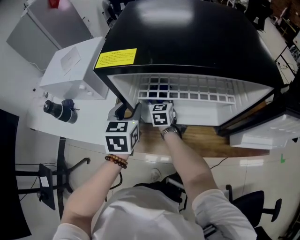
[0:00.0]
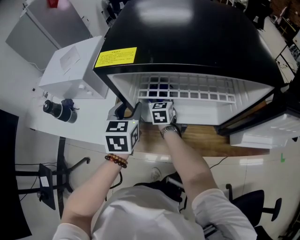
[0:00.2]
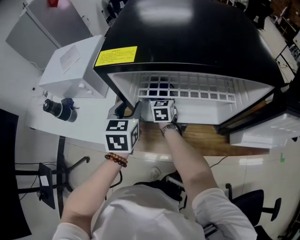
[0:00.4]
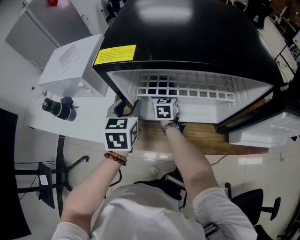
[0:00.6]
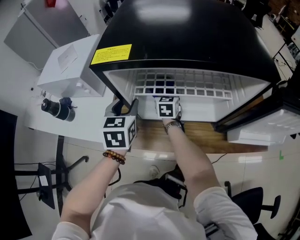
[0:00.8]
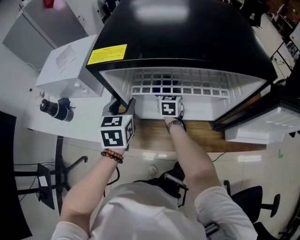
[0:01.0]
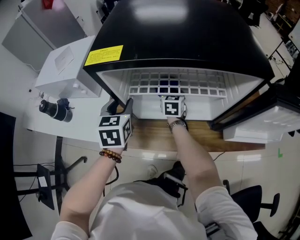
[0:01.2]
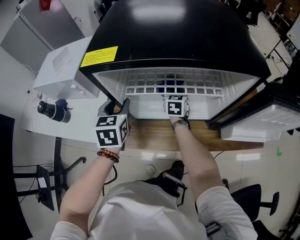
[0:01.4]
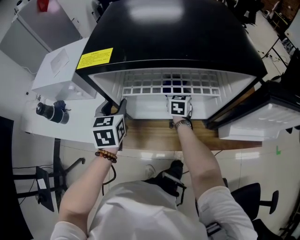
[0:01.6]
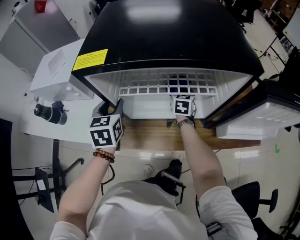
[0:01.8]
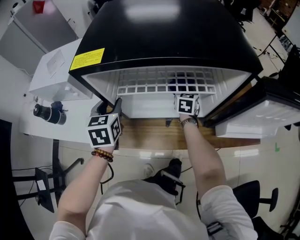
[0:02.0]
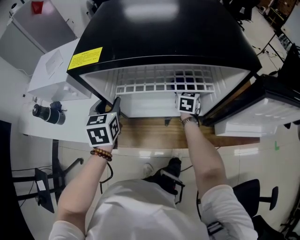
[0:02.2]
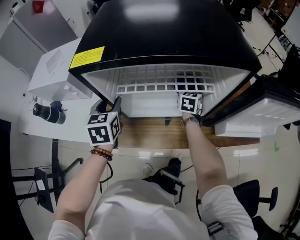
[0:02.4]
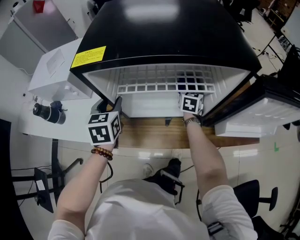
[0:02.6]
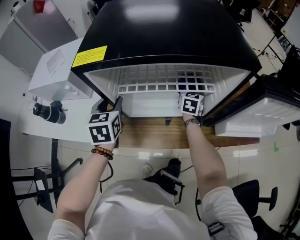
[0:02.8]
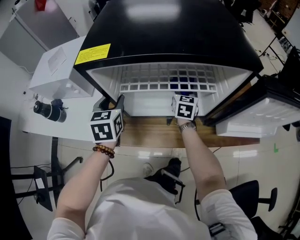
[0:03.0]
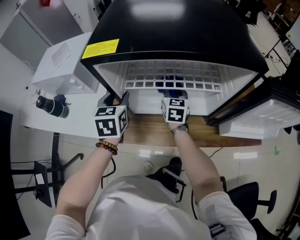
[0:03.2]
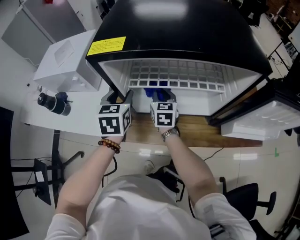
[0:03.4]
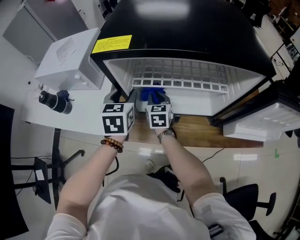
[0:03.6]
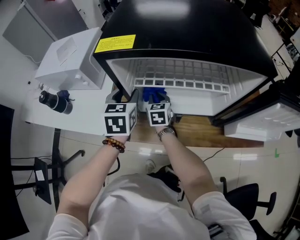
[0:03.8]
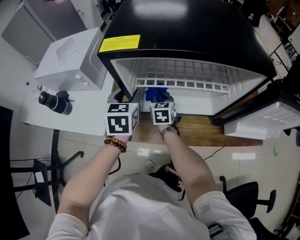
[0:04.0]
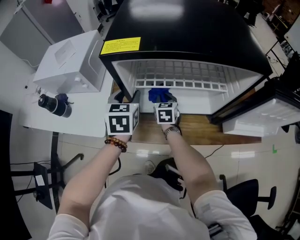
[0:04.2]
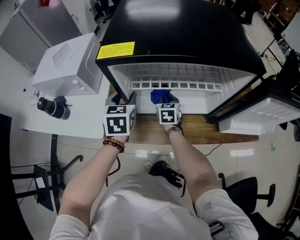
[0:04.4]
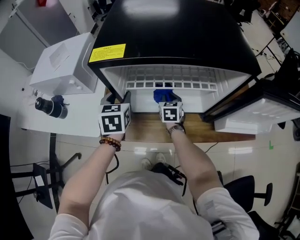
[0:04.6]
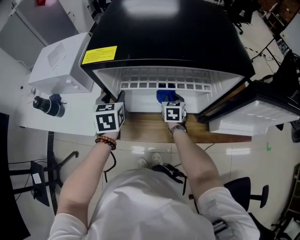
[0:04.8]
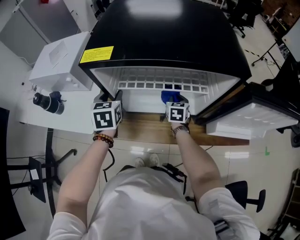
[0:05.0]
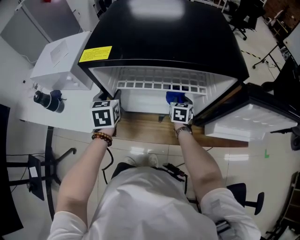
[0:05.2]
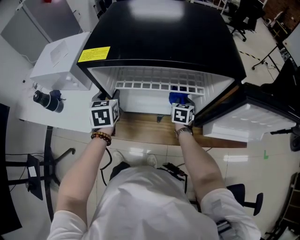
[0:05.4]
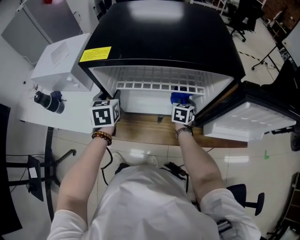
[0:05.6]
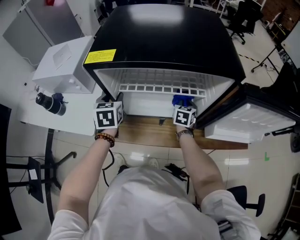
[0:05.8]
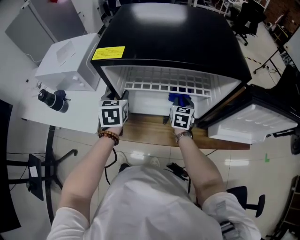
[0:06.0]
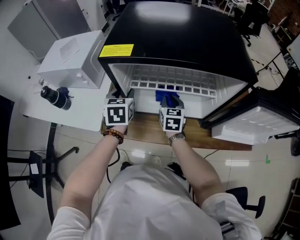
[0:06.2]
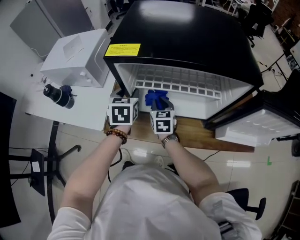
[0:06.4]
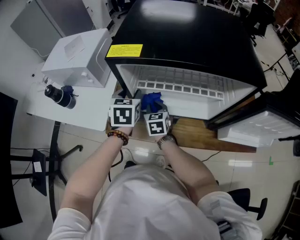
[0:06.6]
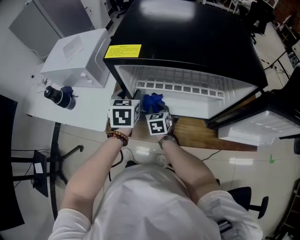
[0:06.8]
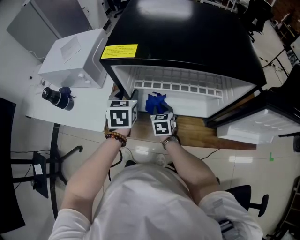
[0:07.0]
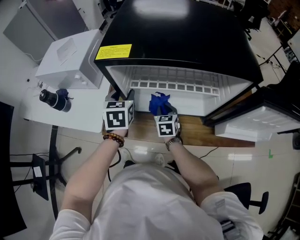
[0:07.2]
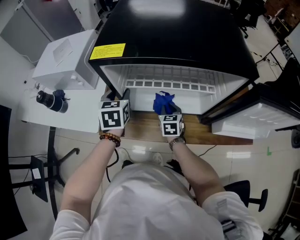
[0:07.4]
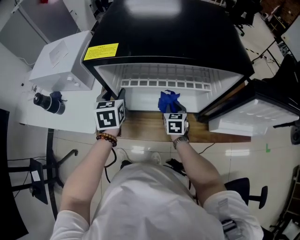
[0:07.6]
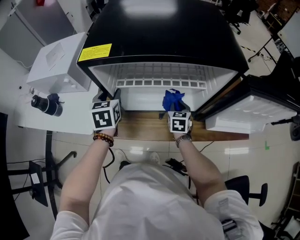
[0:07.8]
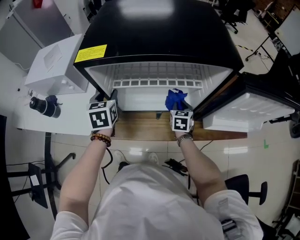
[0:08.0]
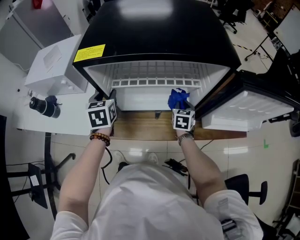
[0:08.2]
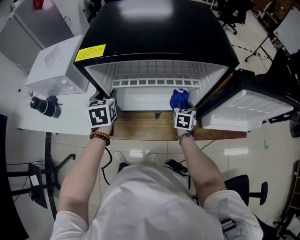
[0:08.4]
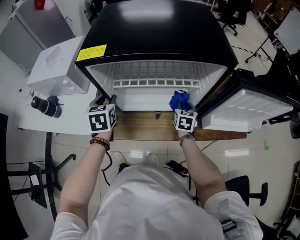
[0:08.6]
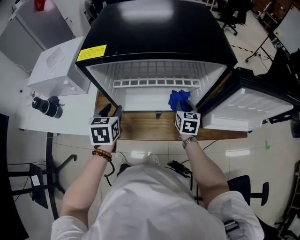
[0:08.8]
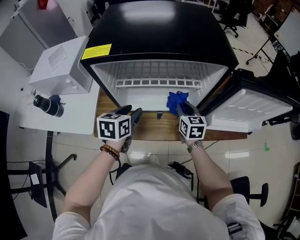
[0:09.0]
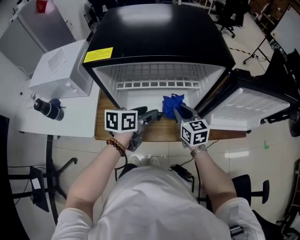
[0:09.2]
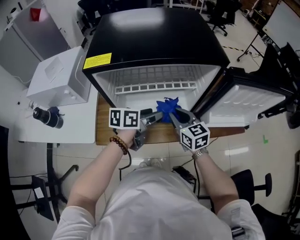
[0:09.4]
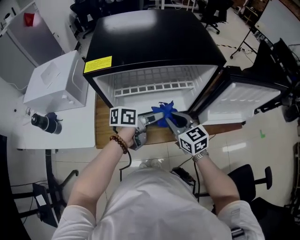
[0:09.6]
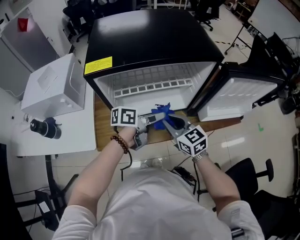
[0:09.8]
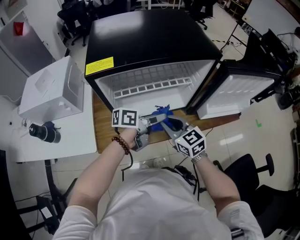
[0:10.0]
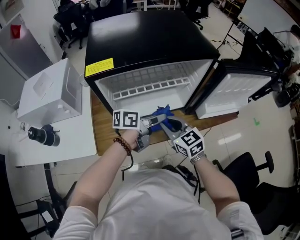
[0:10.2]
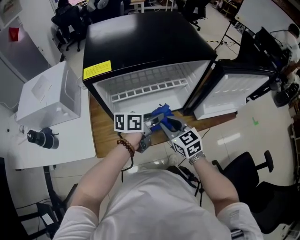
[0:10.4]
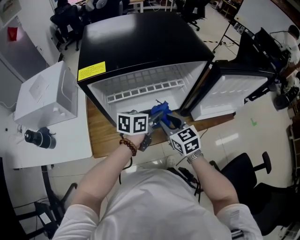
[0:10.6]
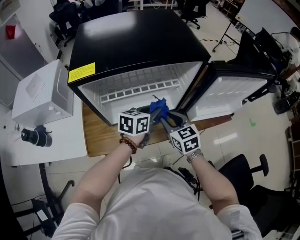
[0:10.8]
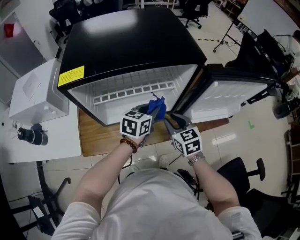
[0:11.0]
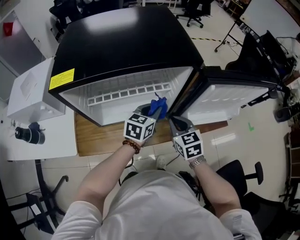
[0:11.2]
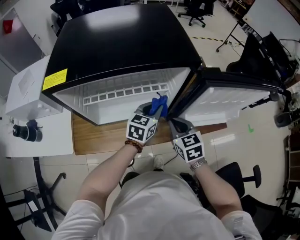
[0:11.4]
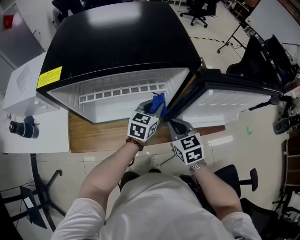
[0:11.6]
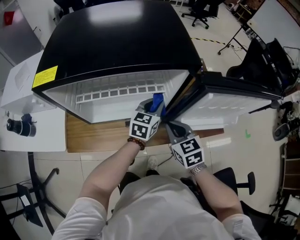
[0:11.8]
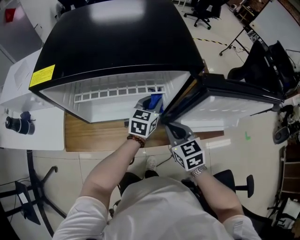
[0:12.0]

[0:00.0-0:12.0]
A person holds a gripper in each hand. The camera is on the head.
0:00.0 to 0:01.6: The right gripper shifts approximately 15 cm to the right.
0:03.0 to 0:04.4: The right gripper shifts some 15 cm to the left and downward.
0:04.4 to 0:06.0: The right gripper heads to the right and upward, covering some 15 cm.
0:06.0 to 0:07.6: The right gripper shifts approximately 5 cm downward, and reaches approximately 20 cm to the left, then returns.
0:07.6 to 0:09.0: The right gripper is displaced upward and to the right by approximately 10 cm. The left gripper travels to the right and backward by approximately 15 cm, and turns by some 20 degrees.
0:09.0 to 0:10.4: The right gripper is displaced backward, upward and to the left by about 15 cm; the left gripper goes approximately 10 cm to the right, changes its angle by approximately 50 degrees, and closes up.
0:10.4 to 0:12.0: The right gripper heads to the right, covering about 15 cm, while the left gripper shifts roughly 20 cm forward and to the right, and swivels about 40 degrees.

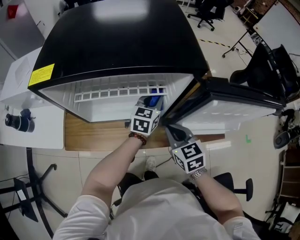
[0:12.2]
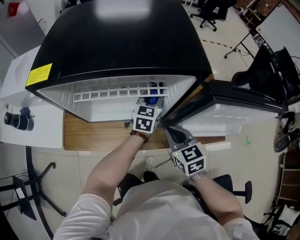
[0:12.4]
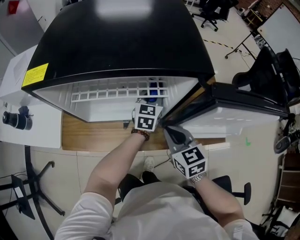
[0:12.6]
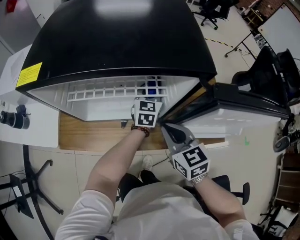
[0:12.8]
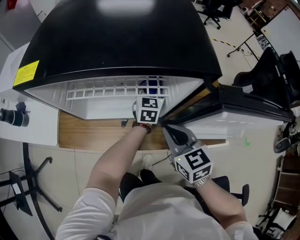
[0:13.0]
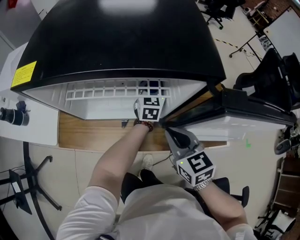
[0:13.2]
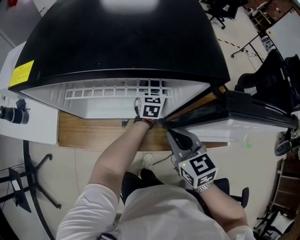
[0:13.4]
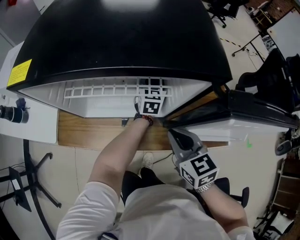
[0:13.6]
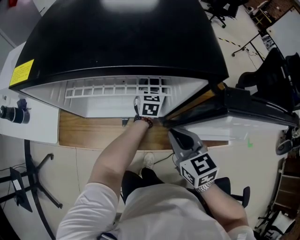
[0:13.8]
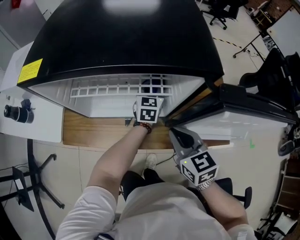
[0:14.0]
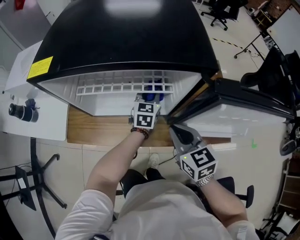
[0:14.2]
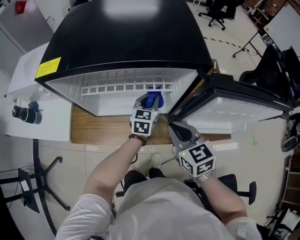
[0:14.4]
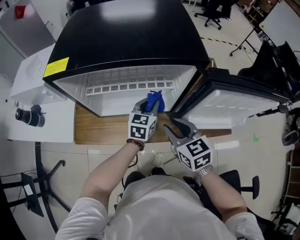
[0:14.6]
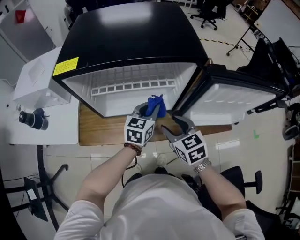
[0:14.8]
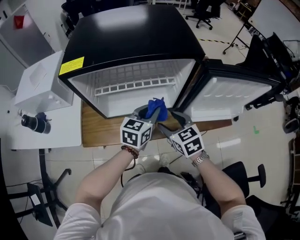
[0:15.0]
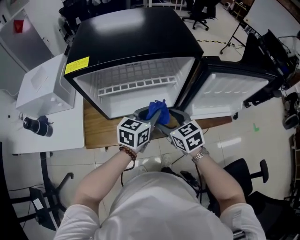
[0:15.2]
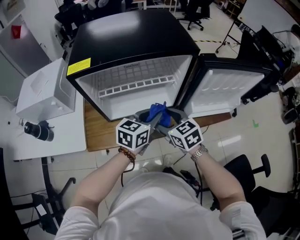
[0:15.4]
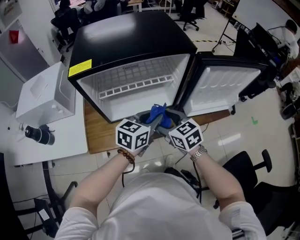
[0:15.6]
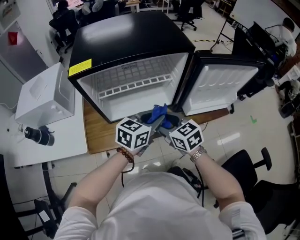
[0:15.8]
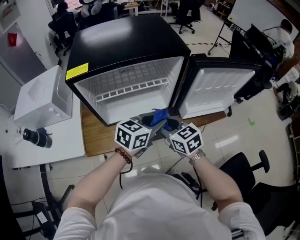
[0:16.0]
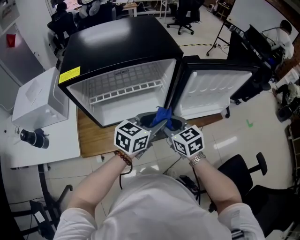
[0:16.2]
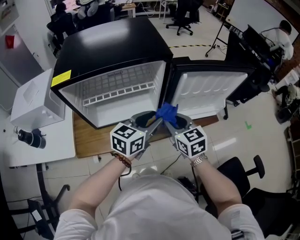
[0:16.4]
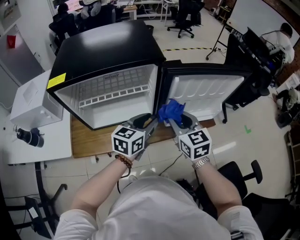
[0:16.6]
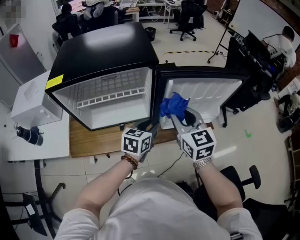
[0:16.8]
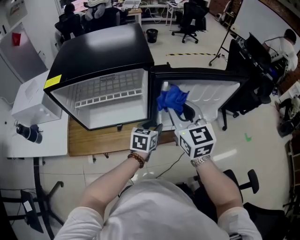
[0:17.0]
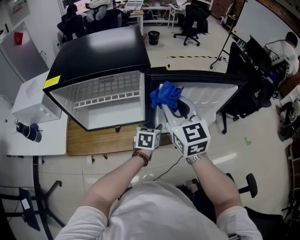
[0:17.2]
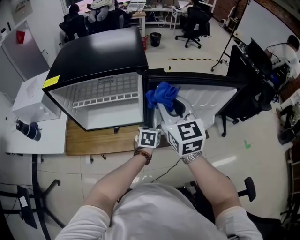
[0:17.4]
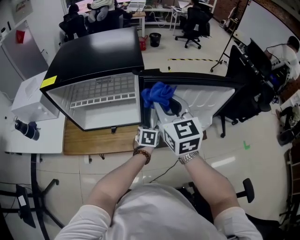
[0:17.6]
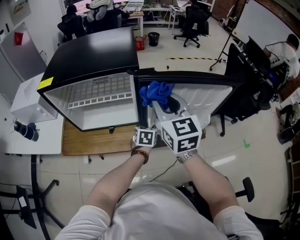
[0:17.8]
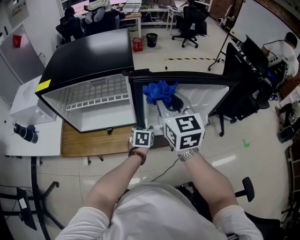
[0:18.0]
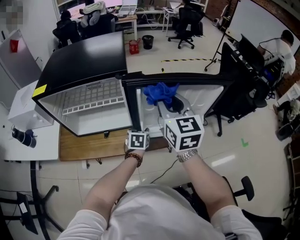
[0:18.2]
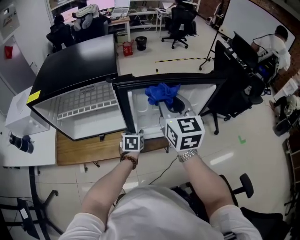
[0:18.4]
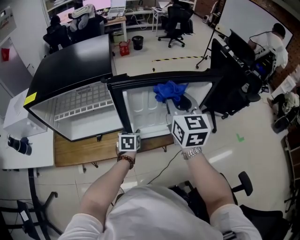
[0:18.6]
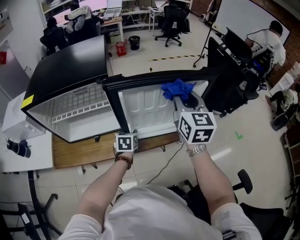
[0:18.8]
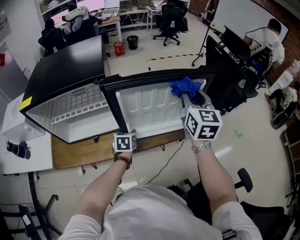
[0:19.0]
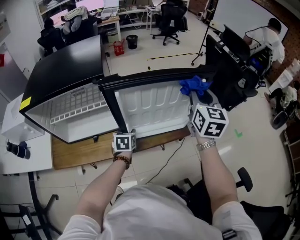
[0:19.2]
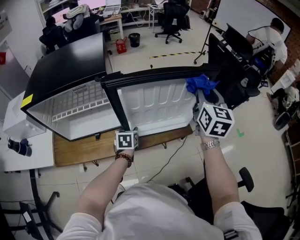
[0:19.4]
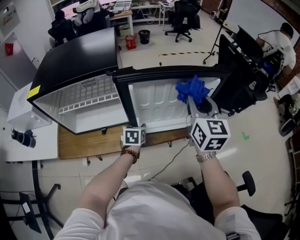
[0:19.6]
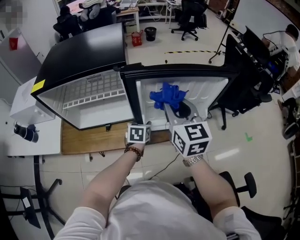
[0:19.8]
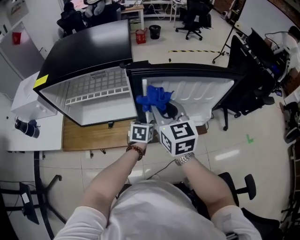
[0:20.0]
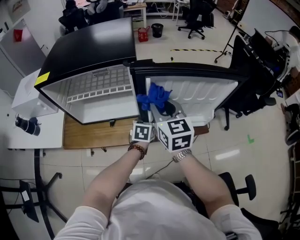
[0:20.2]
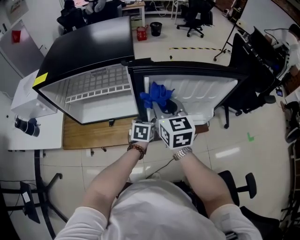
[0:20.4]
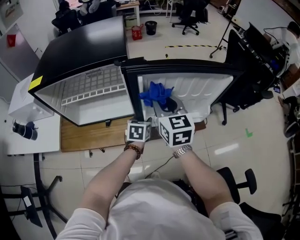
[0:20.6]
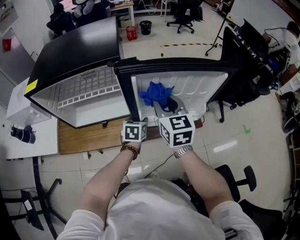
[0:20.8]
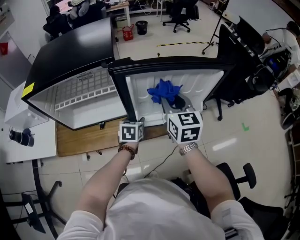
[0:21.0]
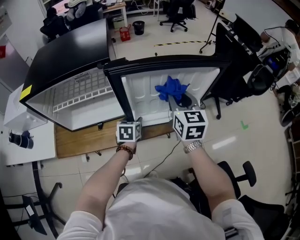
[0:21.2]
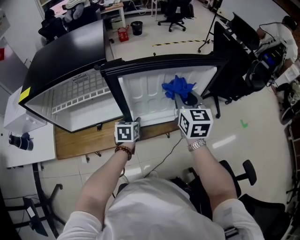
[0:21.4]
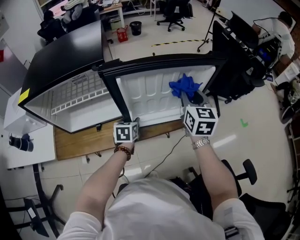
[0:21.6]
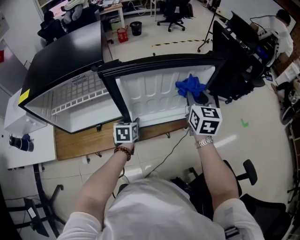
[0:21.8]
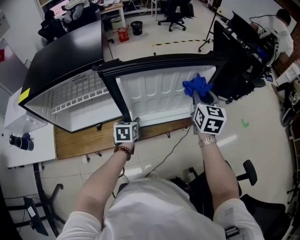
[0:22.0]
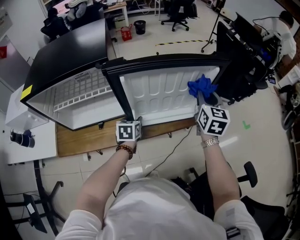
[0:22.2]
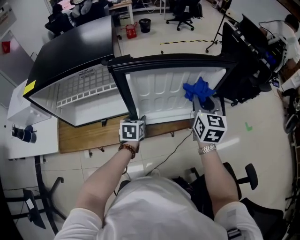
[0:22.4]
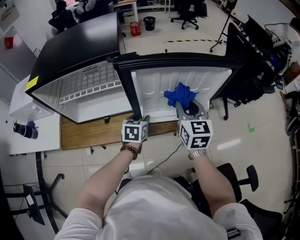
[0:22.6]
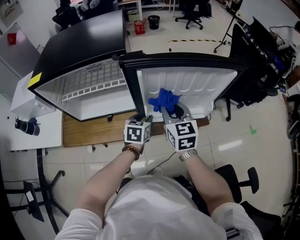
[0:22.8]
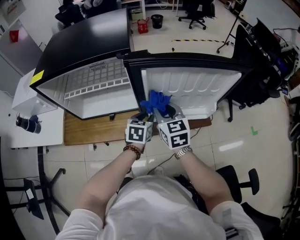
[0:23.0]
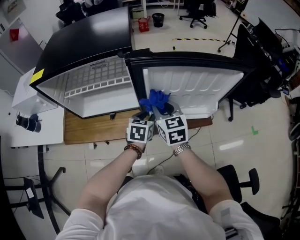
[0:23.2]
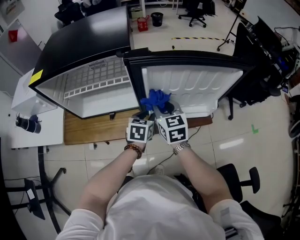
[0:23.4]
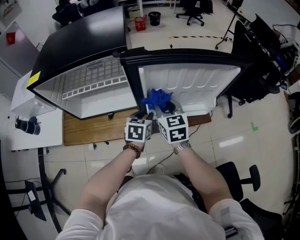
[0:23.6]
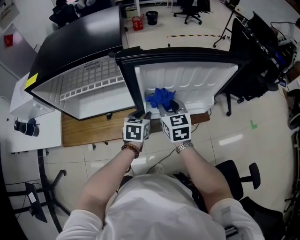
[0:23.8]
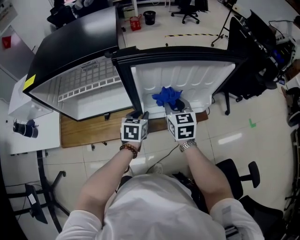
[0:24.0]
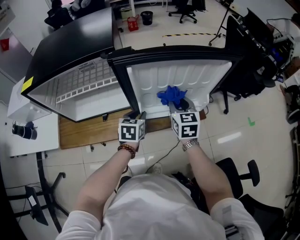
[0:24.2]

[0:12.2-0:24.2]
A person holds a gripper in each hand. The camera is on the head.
0:12.2 to 0:13.8: The left gripper shifts about 10 cm forward.
0:13.8 to 0:15.2: The right gripper goes approximately 10 cm to the left, and opens up; the left gripper heads backward and upward, covering some 25 cm, and turns by some 30 degrees.
0:15.2 to 0:16.6: The left gripper shifts about 10 cm to the right. Meanwhile the right gripper goes roughly 15 cm to the right and upward, changes its angle by about 20 degrees, and closes up.
0:16.6 to 0:18.2: The left gripper moves downward and to the right, approximately 20 cm, and tips its fingers downward by roughly 30 degrees. Meanwhile the right gripper travels upward, to the right and forward by approximately 15 cm.
0:18.2 to 0:19.8: The right gripper moves roughly 20 cm to the right and comes back.
0:19.8 to 0:21.2: The right gripper moves to the right and downward, roughly 10 cm.
0:21.2 to 0:22.6: The right gripper travels to the right and back again, some 15 cm each way.
0:22.6 to 0:24.2: The right gripper goes approximately 10 cm downward, and travels to the left and back again, roughly 15 cm each way.
